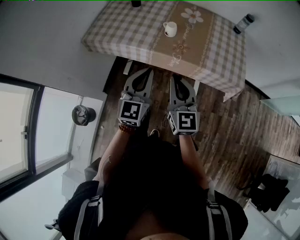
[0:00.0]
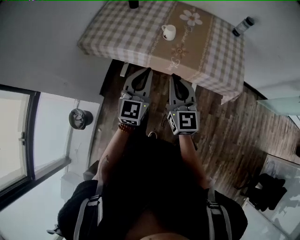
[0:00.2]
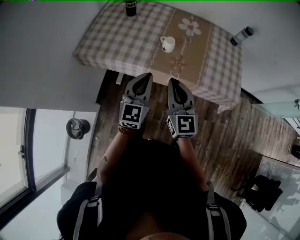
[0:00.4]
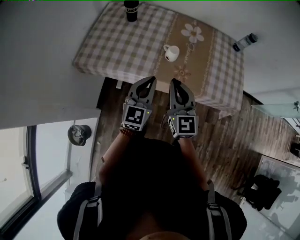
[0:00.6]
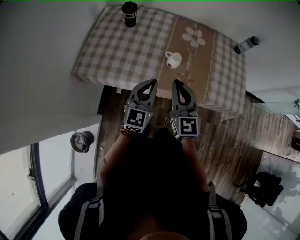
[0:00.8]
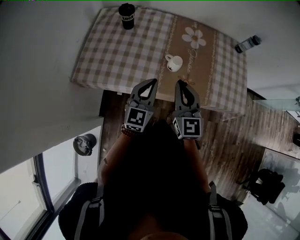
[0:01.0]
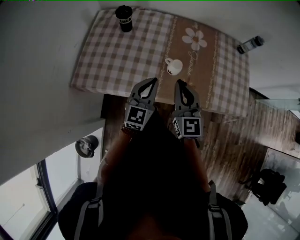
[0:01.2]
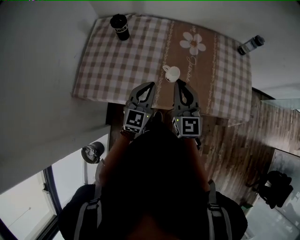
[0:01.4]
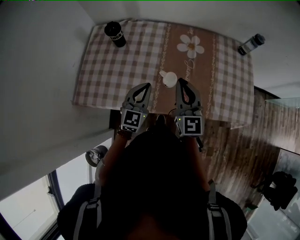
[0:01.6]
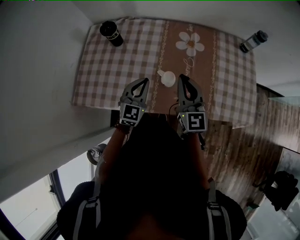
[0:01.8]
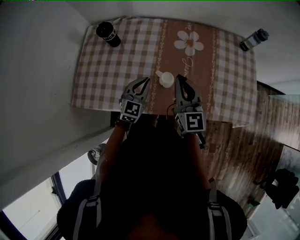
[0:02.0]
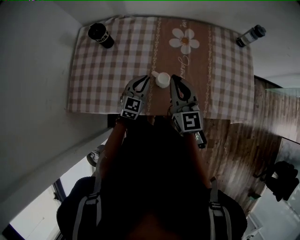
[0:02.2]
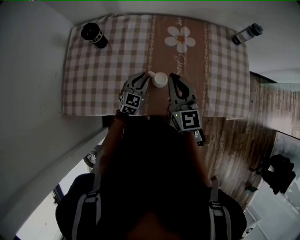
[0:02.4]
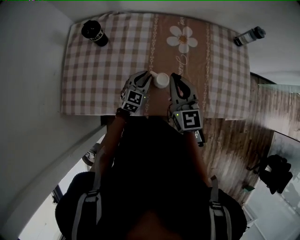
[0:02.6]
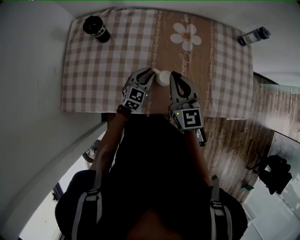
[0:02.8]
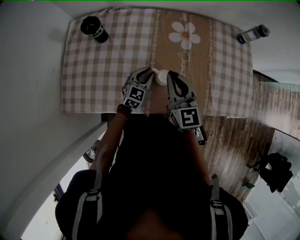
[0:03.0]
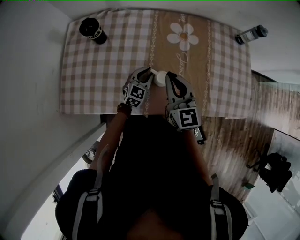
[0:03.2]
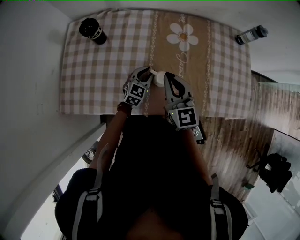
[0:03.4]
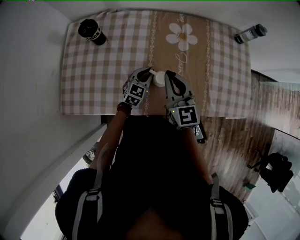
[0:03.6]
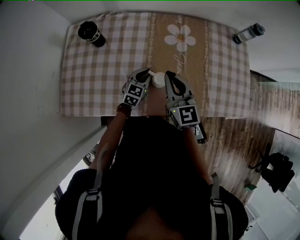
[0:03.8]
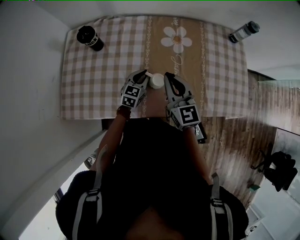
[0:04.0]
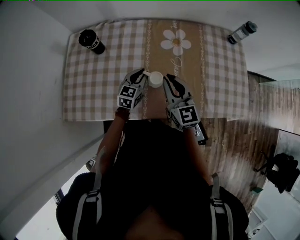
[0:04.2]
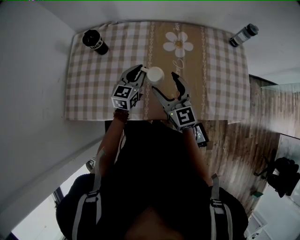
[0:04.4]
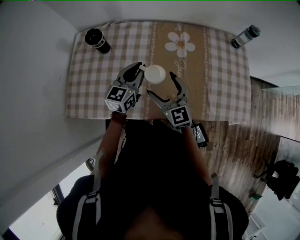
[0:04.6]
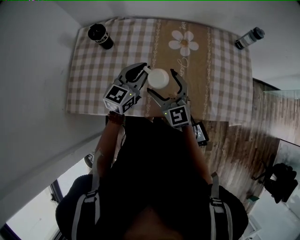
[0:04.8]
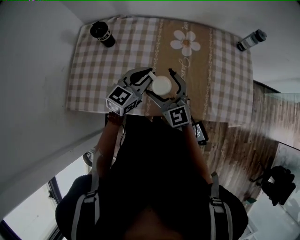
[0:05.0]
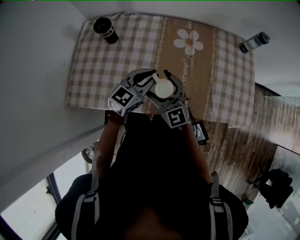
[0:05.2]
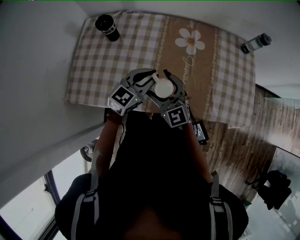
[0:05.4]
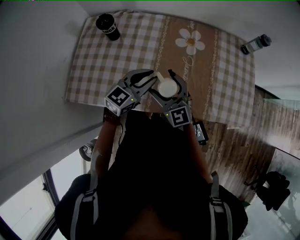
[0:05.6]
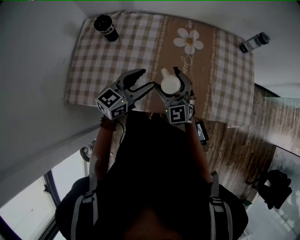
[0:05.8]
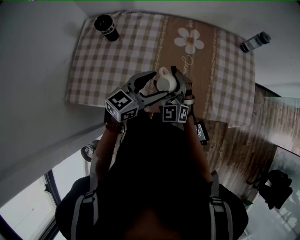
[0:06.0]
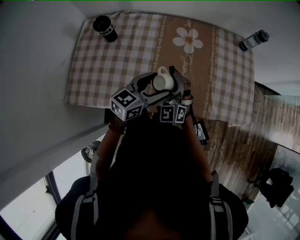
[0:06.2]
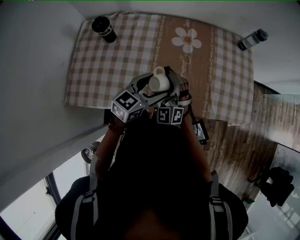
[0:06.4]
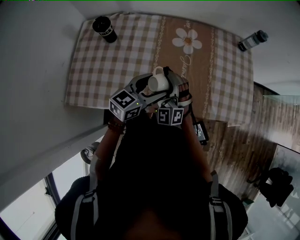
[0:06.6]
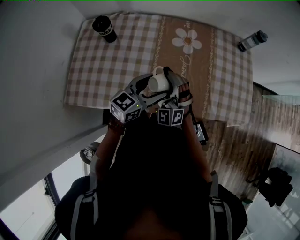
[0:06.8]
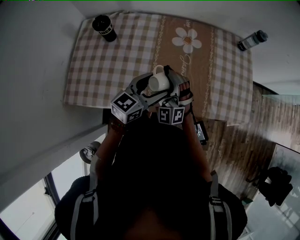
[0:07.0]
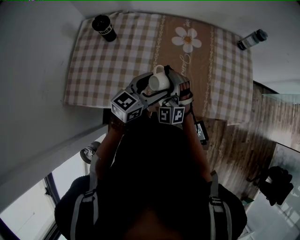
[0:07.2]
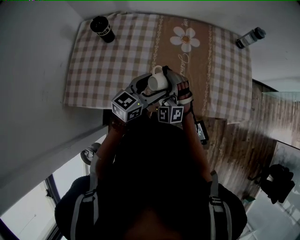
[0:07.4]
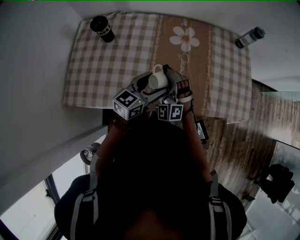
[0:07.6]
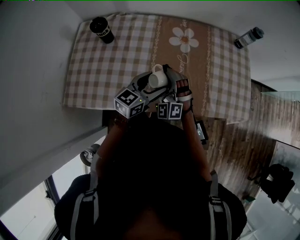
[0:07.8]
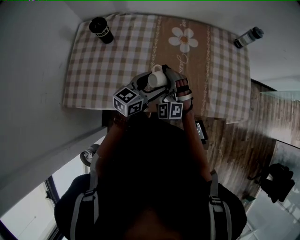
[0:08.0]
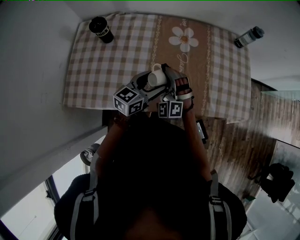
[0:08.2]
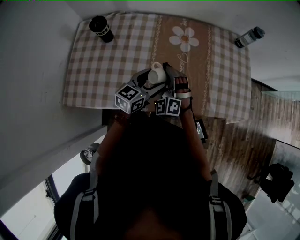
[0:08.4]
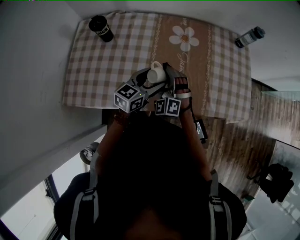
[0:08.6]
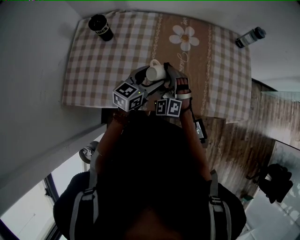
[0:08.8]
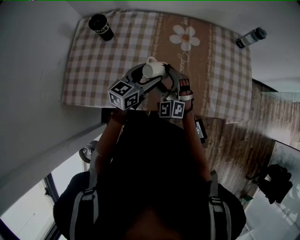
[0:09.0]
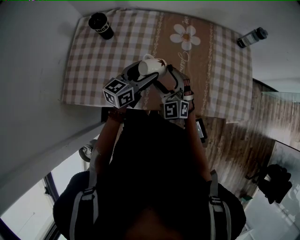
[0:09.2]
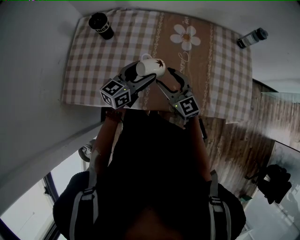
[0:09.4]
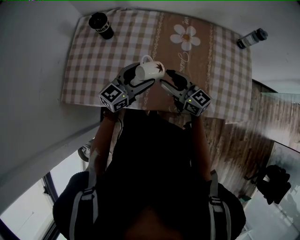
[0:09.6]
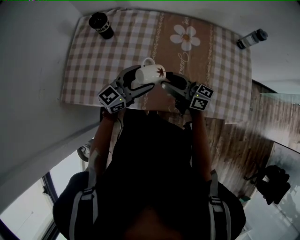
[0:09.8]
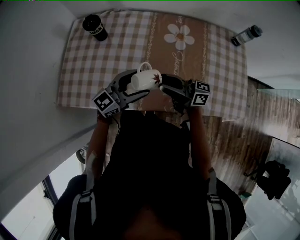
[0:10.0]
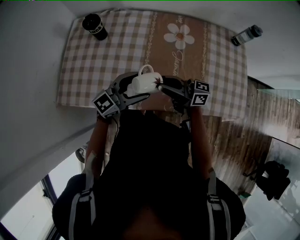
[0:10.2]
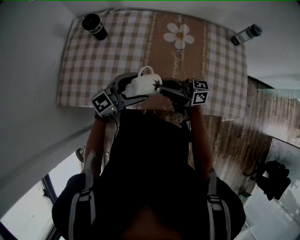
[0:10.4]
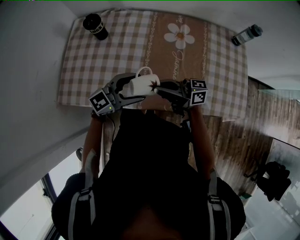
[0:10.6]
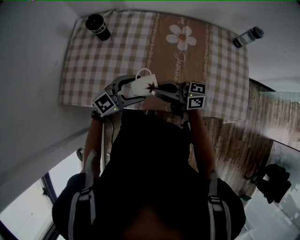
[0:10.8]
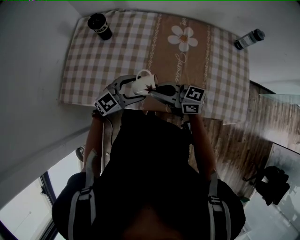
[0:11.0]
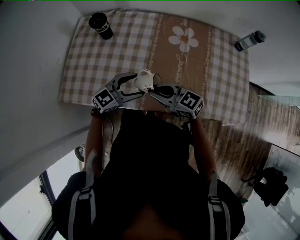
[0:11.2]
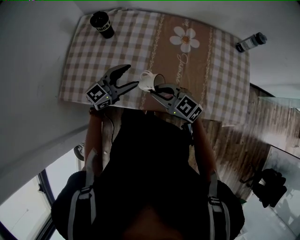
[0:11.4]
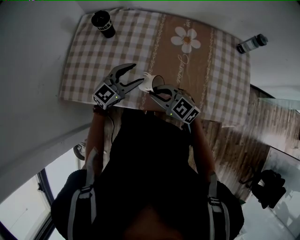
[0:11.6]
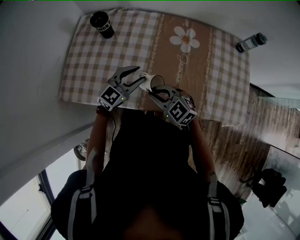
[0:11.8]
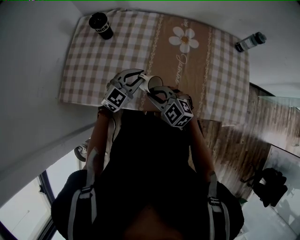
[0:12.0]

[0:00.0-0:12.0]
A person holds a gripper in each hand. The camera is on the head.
0.0 to 1.6 s: The left gripper moves forward and backward over about 15 cm, changing direction 2 times; the right gripper goes forward and backward, roughly 20 cm each way, reversing 2 times.
1.6 to 3.0 s: The left gripper goes approximately 20 cm downward and forward. Meanwhile the right gripper heads forward and downward, covering roughly 10 cm.
3.0 to 4.4 s: The right gripper opens; the left gripper heads upward, covering some 10 cm.
4.4 to 6.0 s: The right gripper rotates around the line of its fingers by about 40 degrees, counterclockwise from behind, while the left gripper goes roughly 15 cm backward, upward and to the right, turns by about 20 degrees, and opens its fingers.
6.0 to 7.6 s: The grippers make only small movements.
7.6 to 9.0 s: The left gripper moves approximately 5 cm.
9.0 to 10.4 s: The left gripper changes place by about 10 cm, and swivels roughly 30 degrees. Meanwhile the right gripper shifts approximately 5 cm upward, angles its fingers upward, by approximately 30 degrees, and closes up.
10.4 to 12.0 s: Both grippers travel together downward, about 5 cm. The right gripper tilts its fingers roughly 50 degrees downward, while the left gripper turns by some 30 degrees, and closes up.

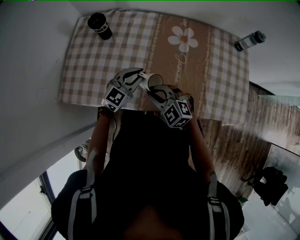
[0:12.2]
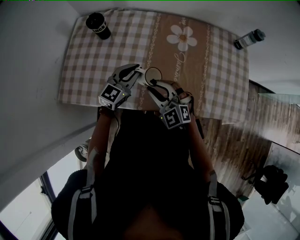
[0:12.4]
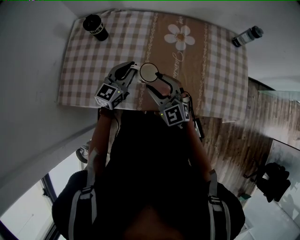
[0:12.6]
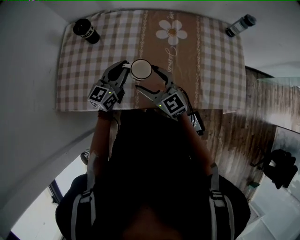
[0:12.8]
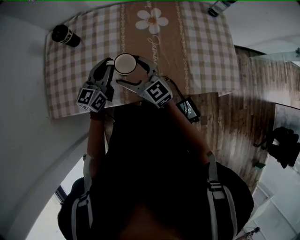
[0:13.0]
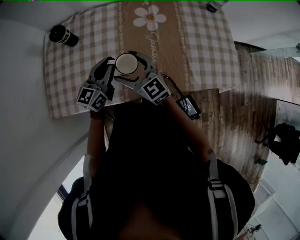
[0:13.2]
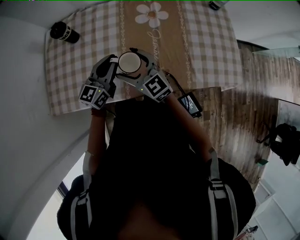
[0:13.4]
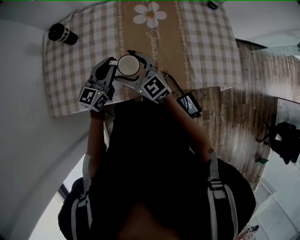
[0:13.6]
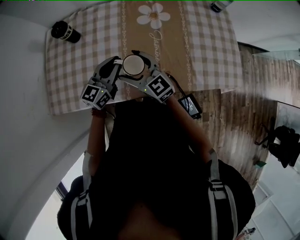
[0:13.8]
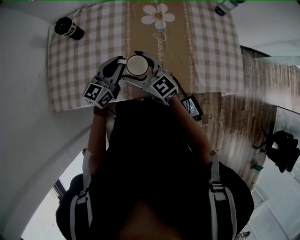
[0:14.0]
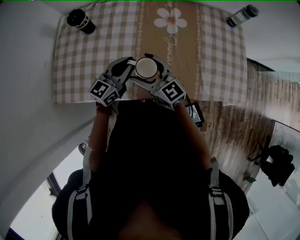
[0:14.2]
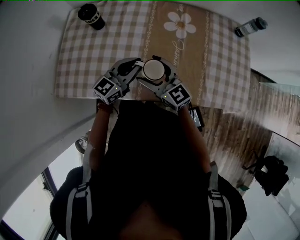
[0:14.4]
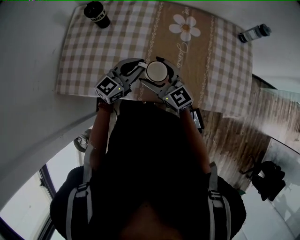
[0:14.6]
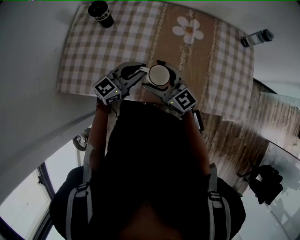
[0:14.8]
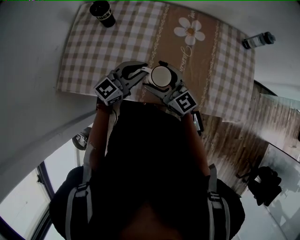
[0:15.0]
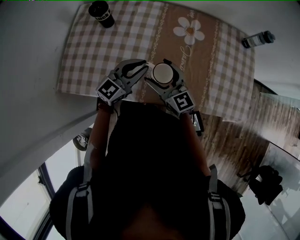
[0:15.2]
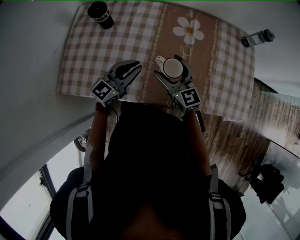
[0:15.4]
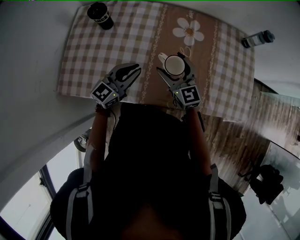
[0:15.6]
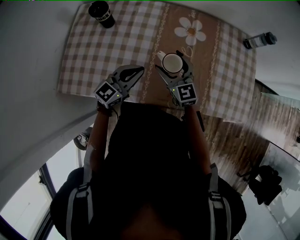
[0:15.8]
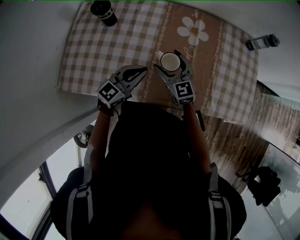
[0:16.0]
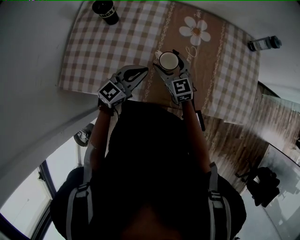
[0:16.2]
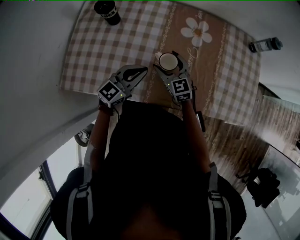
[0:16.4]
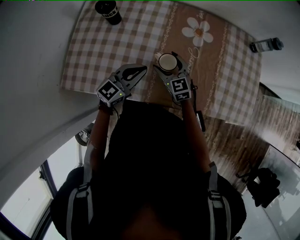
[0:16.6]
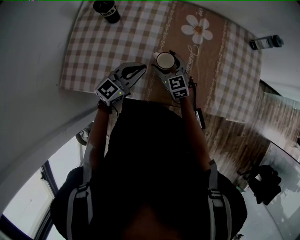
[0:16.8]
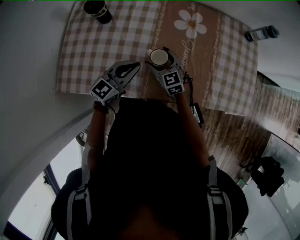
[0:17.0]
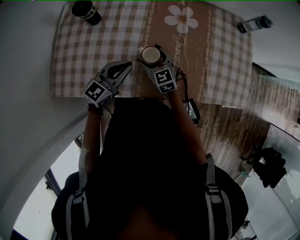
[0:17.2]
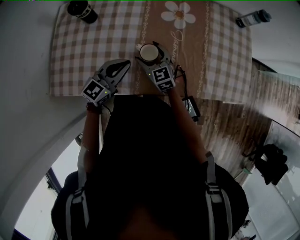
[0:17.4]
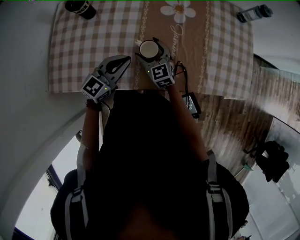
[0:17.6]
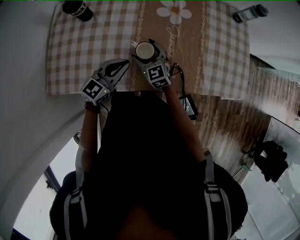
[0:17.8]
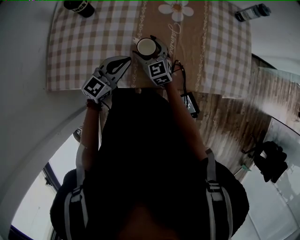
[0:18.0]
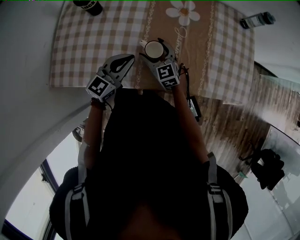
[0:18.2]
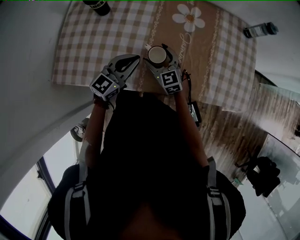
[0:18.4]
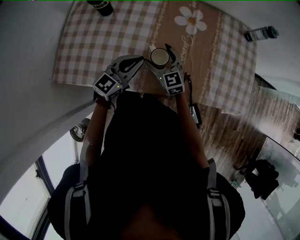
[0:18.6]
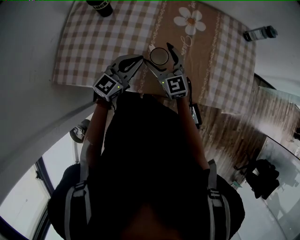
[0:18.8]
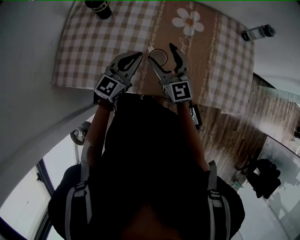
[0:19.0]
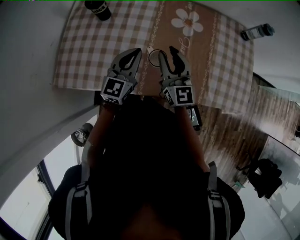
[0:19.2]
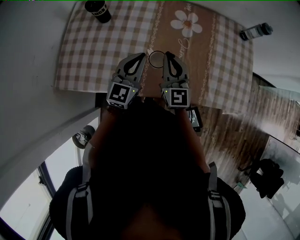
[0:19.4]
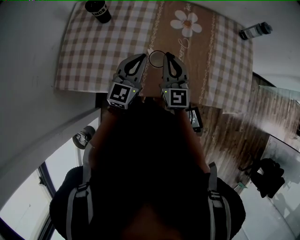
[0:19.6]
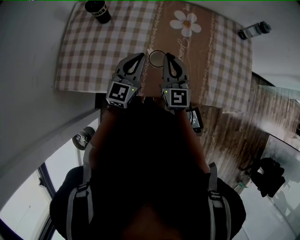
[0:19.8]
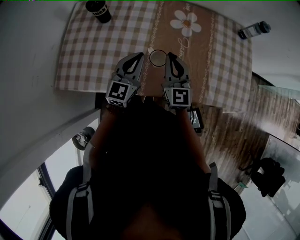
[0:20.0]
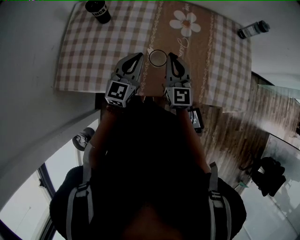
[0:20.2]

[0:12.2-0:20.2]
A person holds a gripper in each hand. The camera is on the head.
12.2 to 13.8 s: The left gripper changes its angle by approximately 20 degrees. Meanwhile the right gripper goes roughly 5 cm forward, rotates some 40 degrees, and opens.
13.8 to 15.4 s: There are only small adjustments of the grippers.
15.4 to 17.0 s: The right gripper goes approximately 10 cm downward and to the left.
17.0 to 18.6 s: The grippers stay close to where they were, moving slightly.
18.6 to 20.2 s: The right gripper heads upward and to the right, covering approximately 10 cm, rotates some 30 degrees, and closes its fingers. The left gripper swivels about 20 degrees.

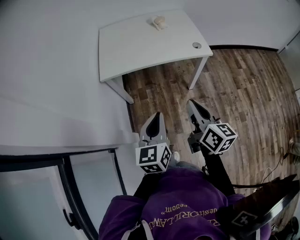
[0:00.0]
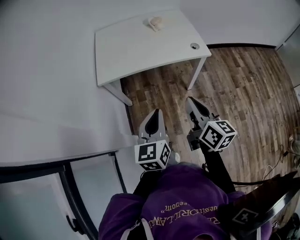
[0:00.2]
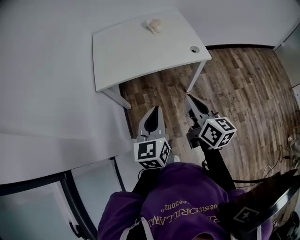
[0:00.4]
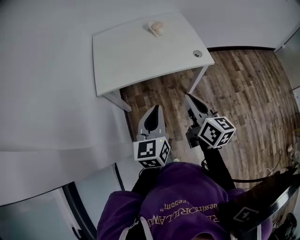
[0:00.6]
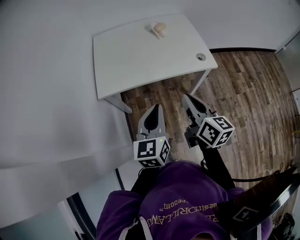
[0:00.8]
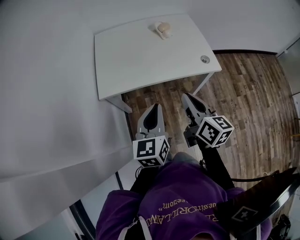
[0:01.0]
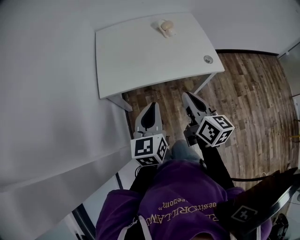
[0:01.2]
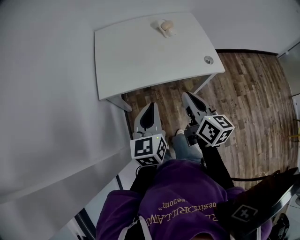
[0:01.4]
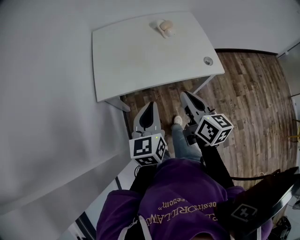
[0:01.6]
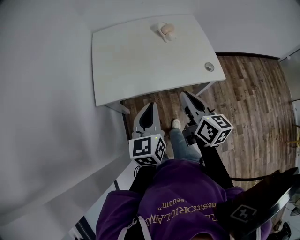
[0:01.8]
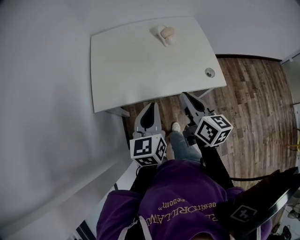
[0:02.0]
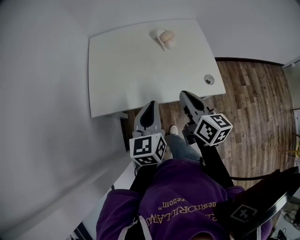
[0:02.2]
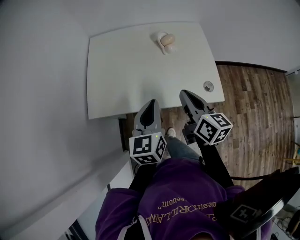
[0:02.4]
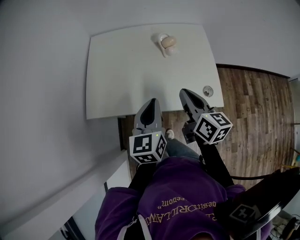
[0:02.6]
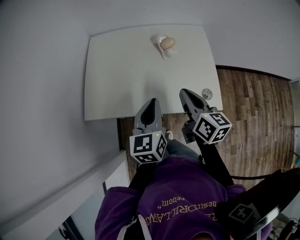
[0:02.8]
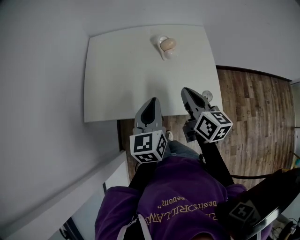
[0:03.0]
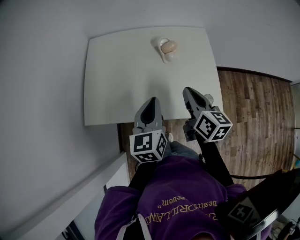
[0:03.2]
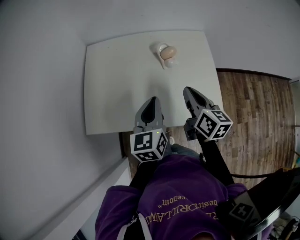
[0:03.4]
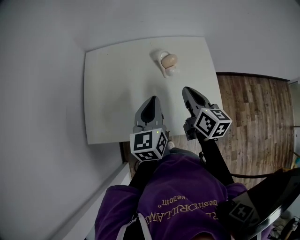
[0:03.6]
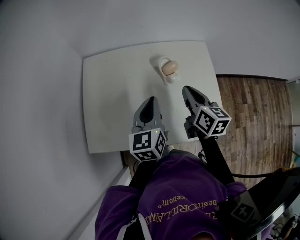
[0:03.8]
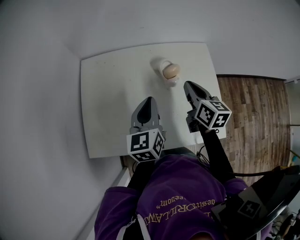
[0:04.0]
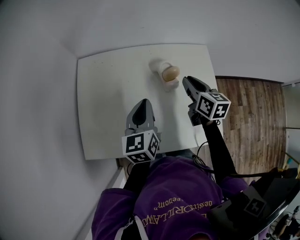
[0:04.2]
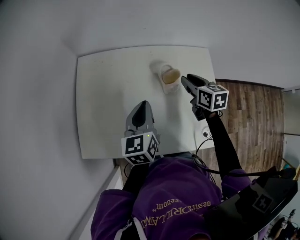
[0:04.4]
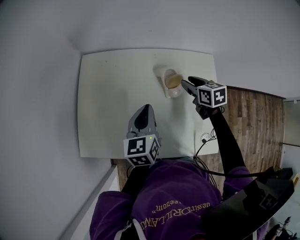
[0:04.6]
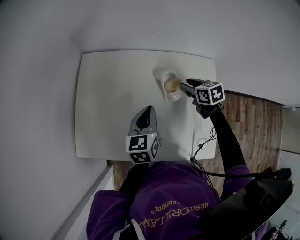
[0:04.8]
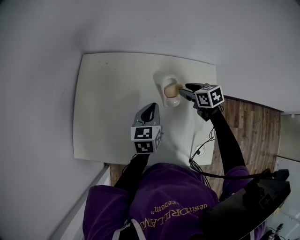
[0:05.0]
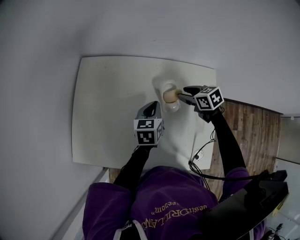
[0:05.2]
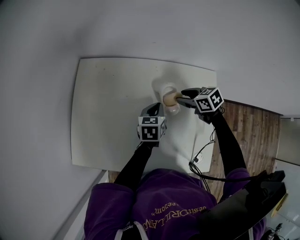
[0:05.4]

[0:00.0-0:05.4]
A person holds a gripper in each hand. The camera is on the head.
0.0 to 1.4 s: Both grippers travel together forward, roughly 20 cm.
1.4 to 2.8 s: The grippers both shift forward and to the right by approximately 25 cm.
2.8 to 4.0 s: The two grippers go approximately 20 cm forward.
4.0 to 5.4 s: The left gripper goes roughly 20 cm downward, forward and to the right, and turns by roughly 20 degrees; the right gripper is displaced downward and forward by roughly 20 cm, changes its angle by roughly 60 degrees, and opens up.
